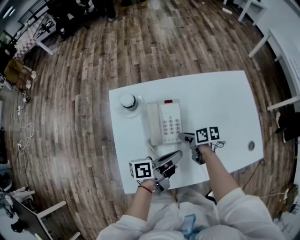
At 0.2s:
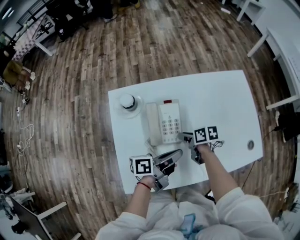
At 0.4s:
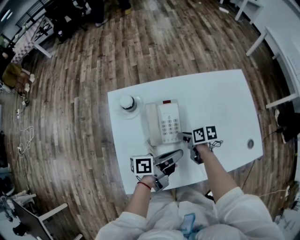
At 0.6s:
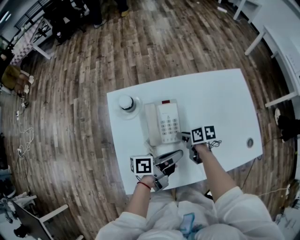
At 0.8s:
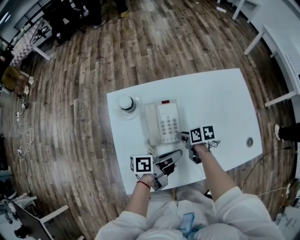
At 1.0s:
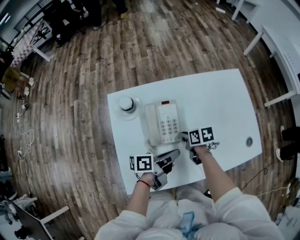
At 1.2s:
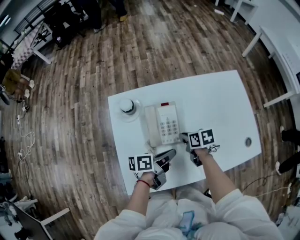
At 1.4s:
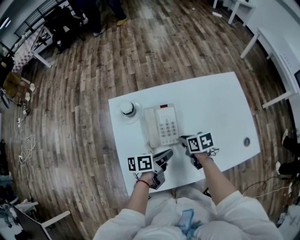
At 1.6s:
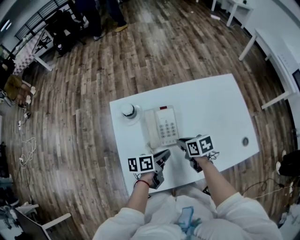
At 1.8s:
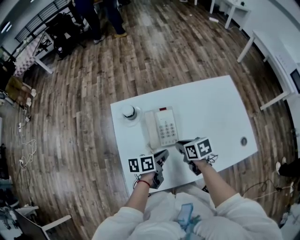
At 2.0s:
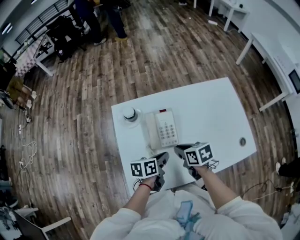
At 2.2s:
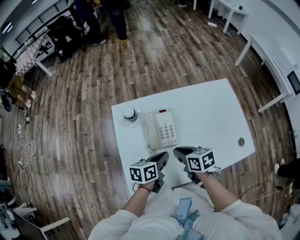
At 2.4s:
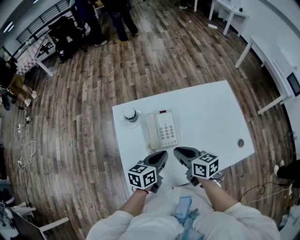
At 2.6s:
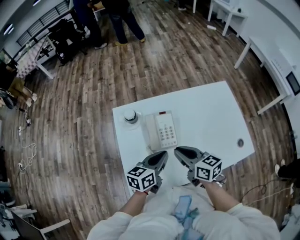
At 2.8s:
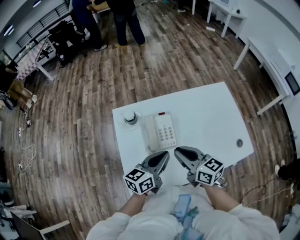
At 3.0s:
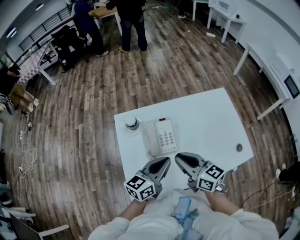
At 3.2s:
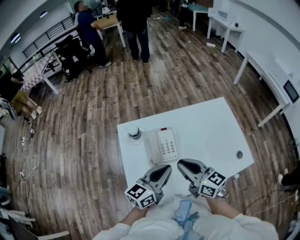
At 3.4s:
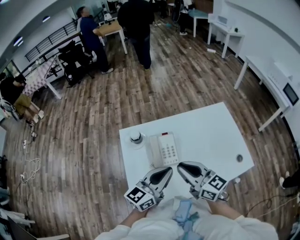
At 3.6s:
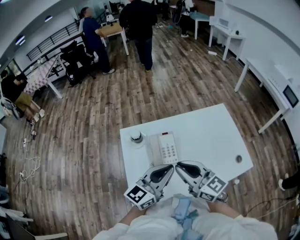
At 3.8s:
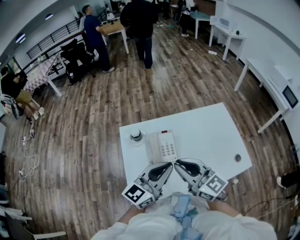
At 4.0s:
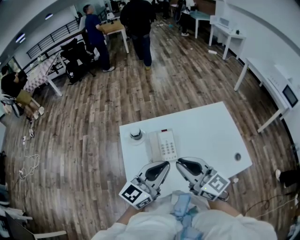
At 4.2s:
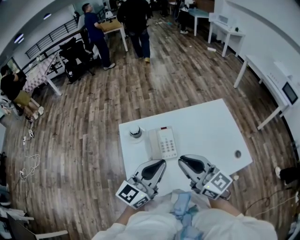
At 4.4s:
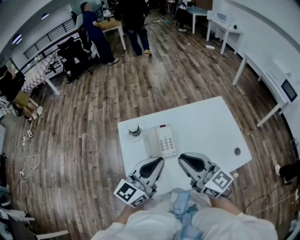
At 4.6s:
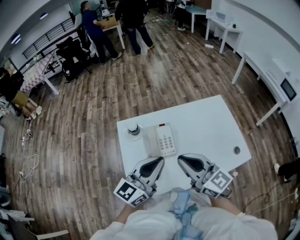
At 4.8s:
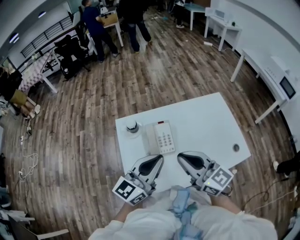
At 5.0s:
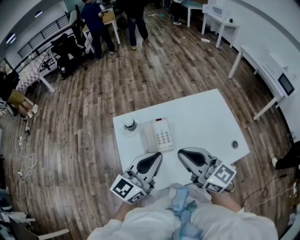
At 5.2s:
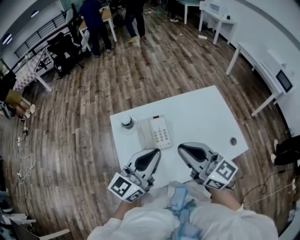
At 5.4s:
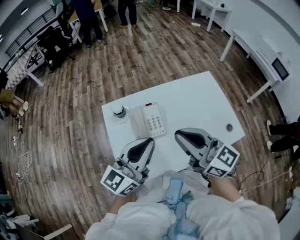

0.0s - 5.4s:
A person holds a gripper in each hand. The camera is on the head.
1.4s - 2.8s: The right gripper goes some 20 cm upward, and tips its fingers upward by approximately 40 degrees.
2.8s - 4.0s: The right gripper is displaced upward by roughly 10 cm, and changes its angle by about 30 degrees.
4.0s - 5.4s: The right gripper moves about 5 cm.

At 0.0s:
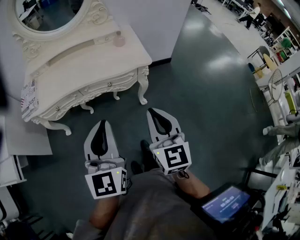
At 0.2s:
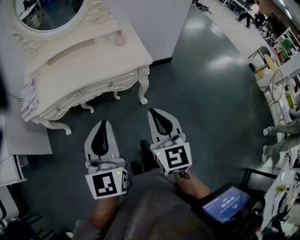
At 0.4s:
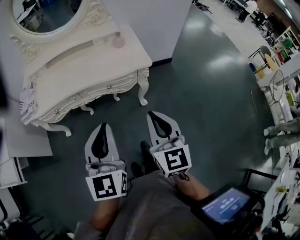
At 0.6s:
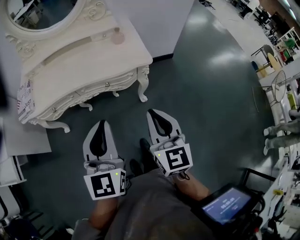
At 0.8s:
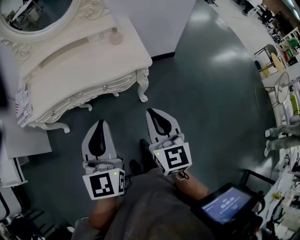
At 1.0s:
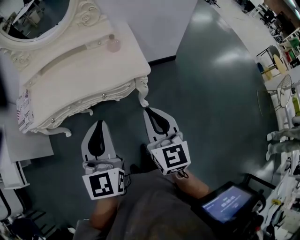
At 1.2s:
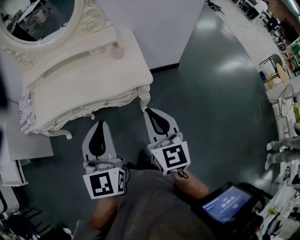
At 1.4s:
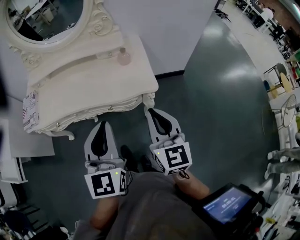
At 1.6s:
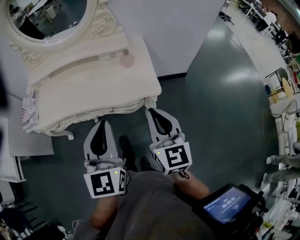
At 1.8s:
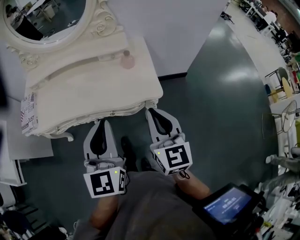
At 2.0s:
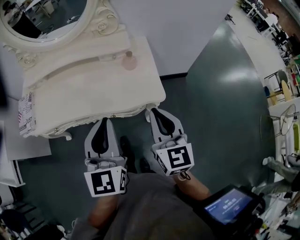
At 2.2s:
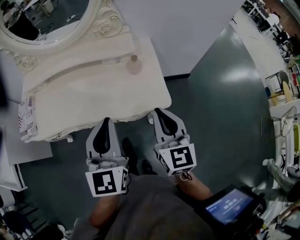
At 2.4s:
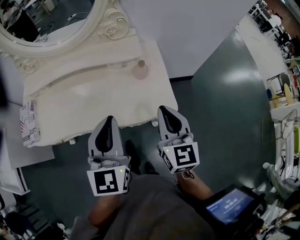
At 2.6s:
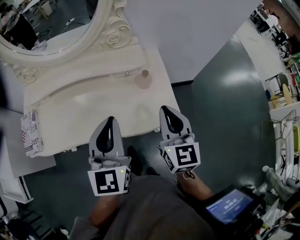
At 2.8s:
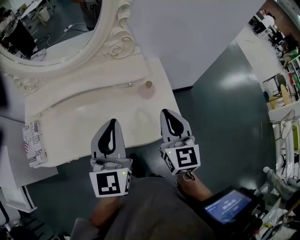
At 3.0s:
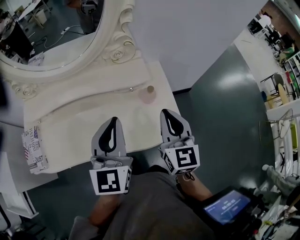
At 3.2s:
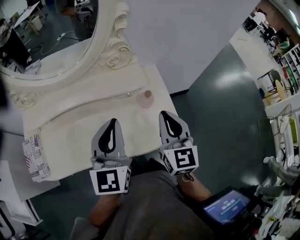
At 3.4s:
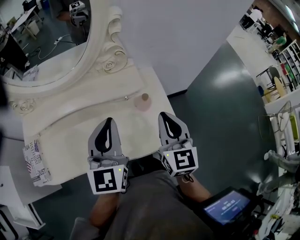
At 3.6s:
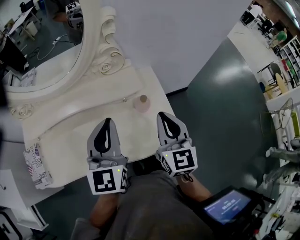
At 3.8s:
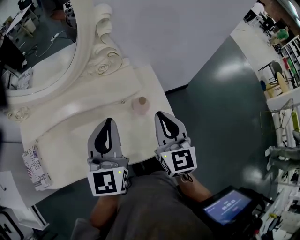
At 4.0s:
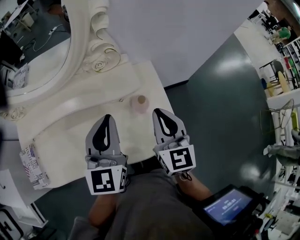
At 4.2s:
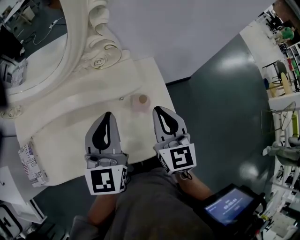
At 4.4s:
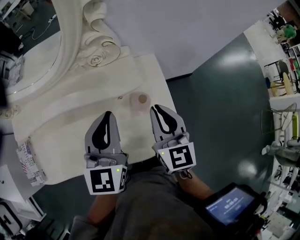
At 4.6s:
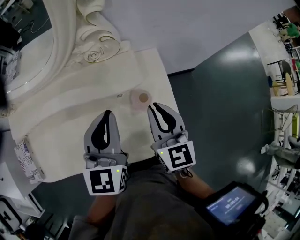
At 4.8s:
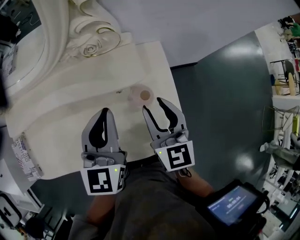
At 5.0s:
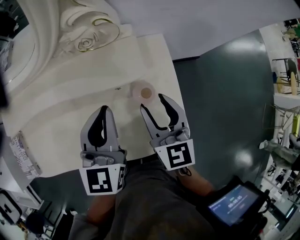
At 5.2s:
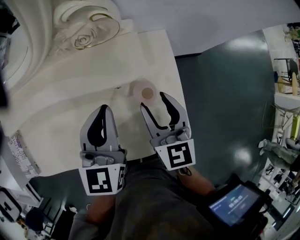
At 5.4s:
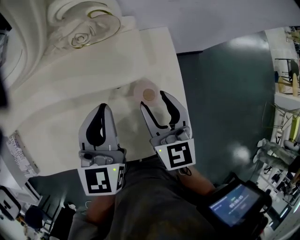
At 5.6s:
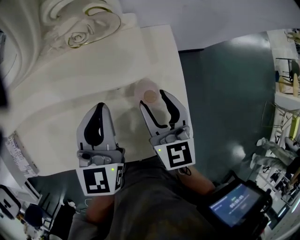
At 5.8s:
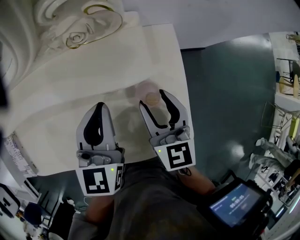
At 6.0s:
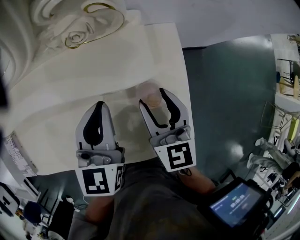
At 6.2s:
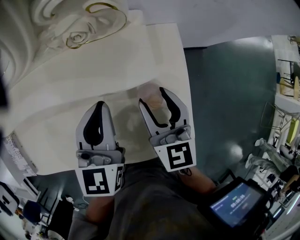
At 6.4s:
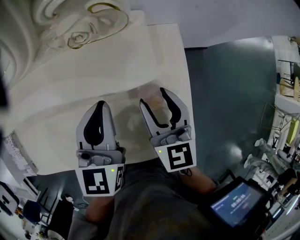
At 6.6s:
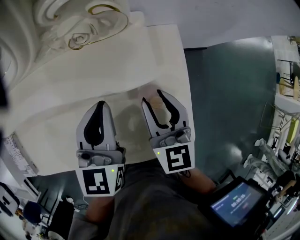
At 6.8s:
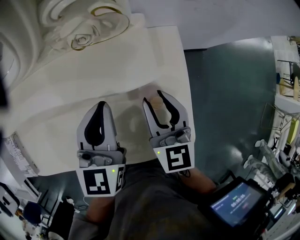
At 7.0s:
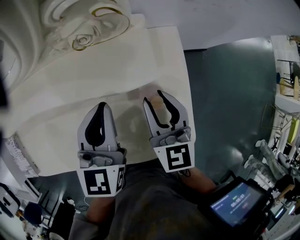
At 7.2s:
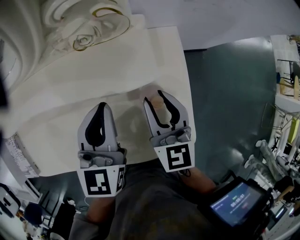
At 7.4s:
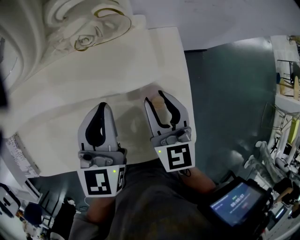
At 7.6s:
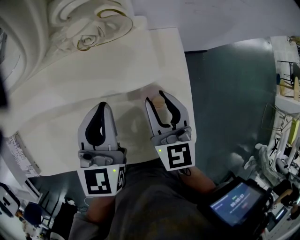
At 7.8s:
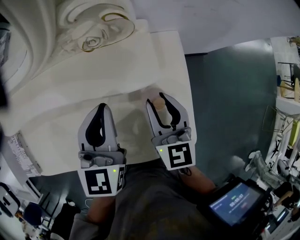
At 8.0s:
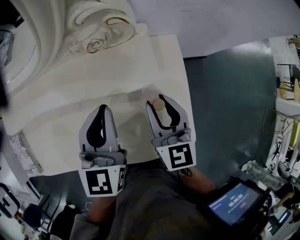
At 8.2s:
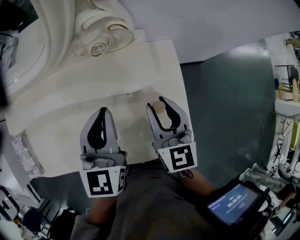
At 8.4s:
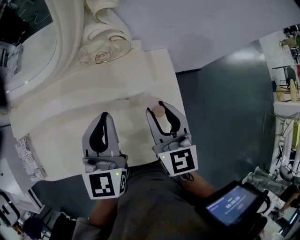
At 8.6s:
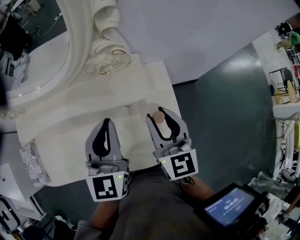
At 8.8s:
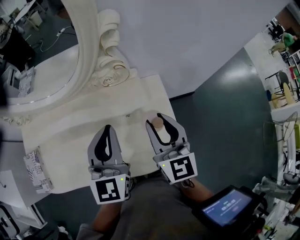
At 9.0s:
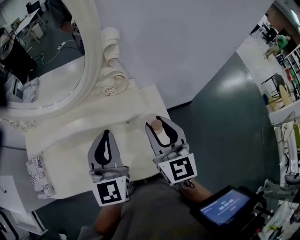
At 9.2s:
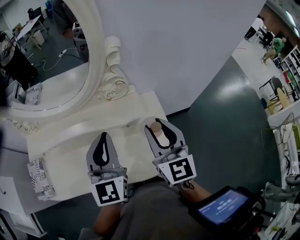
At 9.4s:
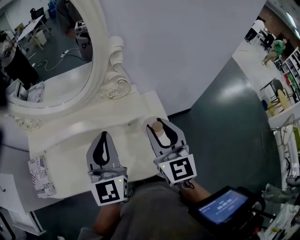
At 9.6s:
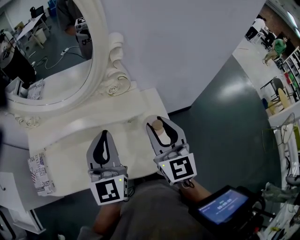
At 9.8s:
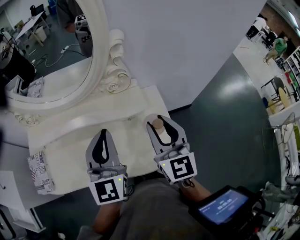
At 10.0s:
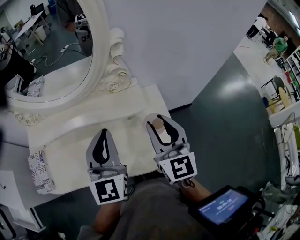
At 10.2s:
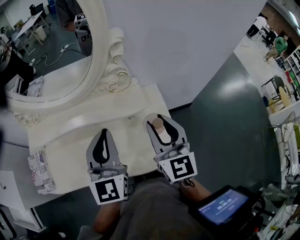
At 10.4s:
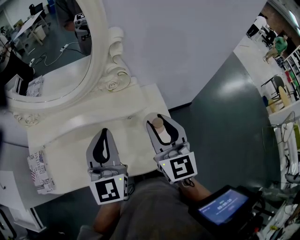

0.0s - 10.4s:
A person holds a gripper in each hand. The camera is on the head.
0.0s - 1.4s: The two grippers go about 20 cm forward.
1.4s - 3.0s: The two grippers go about 25 cm forward.
3.0s - 4.4s: The left gripper travels forward by about 10 cm; the right gripper travels forward and downward by roughly 10 cm.
4.4s - 6.0s: The two grippers go some 15 cm downward and forward. The right gripper opens its fingers.
6.0s - 7.4s: There are only small adjustments of the grippers.
7.4s - 9.0s: Both grippers travel together upward, some 20 cm. The left gripper turns by approximately 20 degrees.
9.0s - 10.4s: The grippers make only small movements.

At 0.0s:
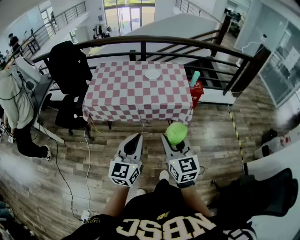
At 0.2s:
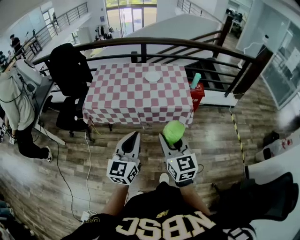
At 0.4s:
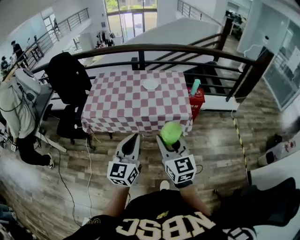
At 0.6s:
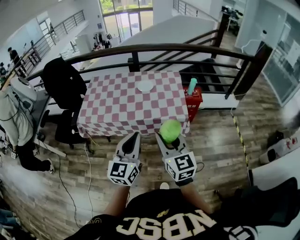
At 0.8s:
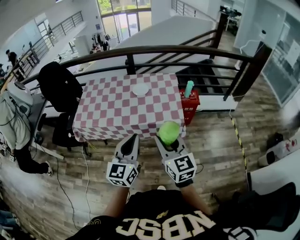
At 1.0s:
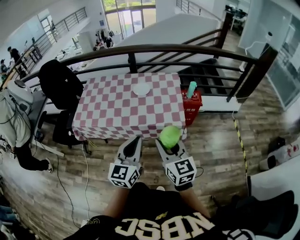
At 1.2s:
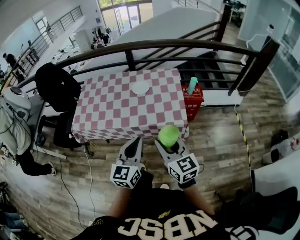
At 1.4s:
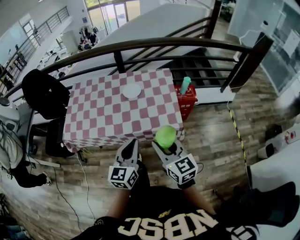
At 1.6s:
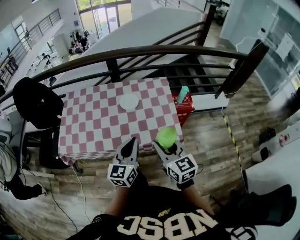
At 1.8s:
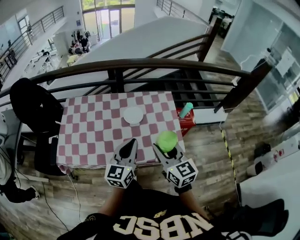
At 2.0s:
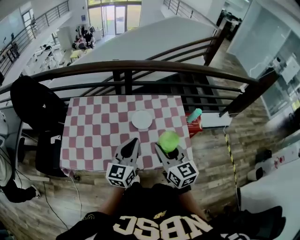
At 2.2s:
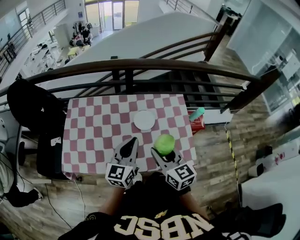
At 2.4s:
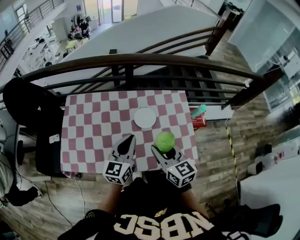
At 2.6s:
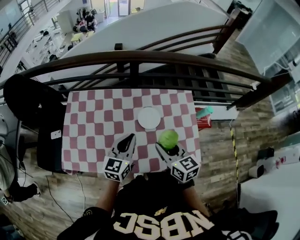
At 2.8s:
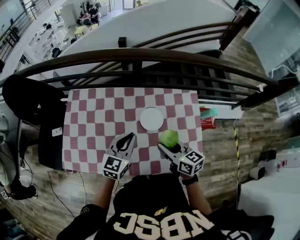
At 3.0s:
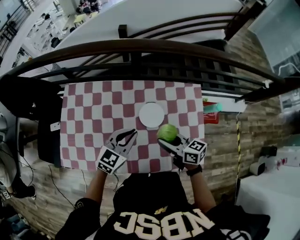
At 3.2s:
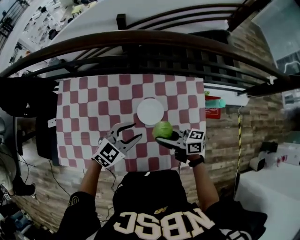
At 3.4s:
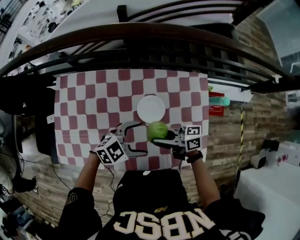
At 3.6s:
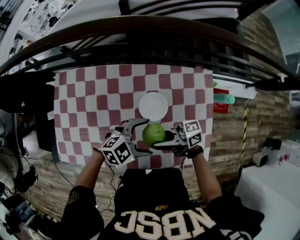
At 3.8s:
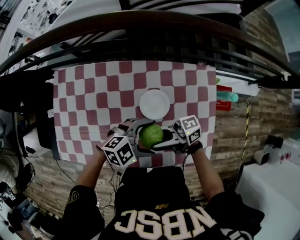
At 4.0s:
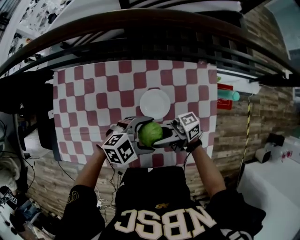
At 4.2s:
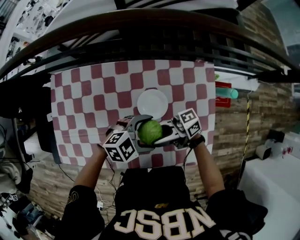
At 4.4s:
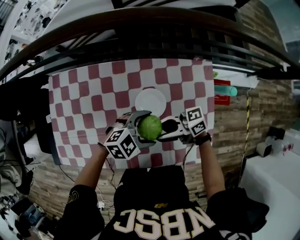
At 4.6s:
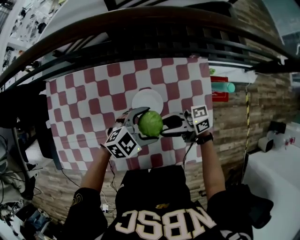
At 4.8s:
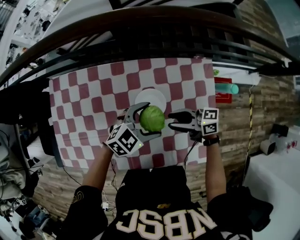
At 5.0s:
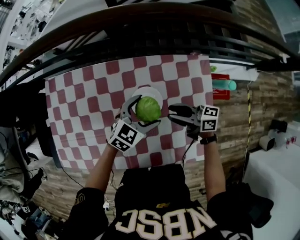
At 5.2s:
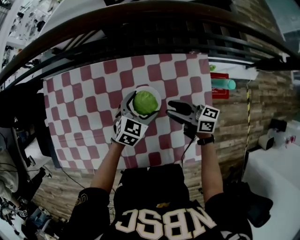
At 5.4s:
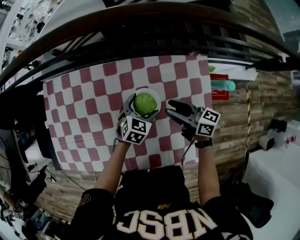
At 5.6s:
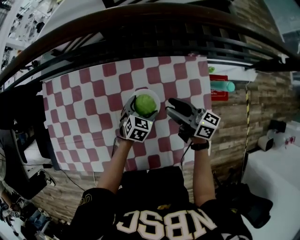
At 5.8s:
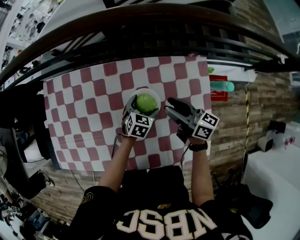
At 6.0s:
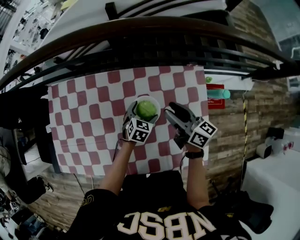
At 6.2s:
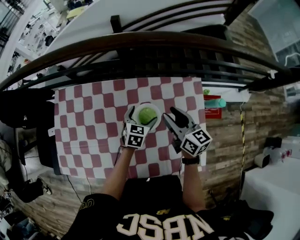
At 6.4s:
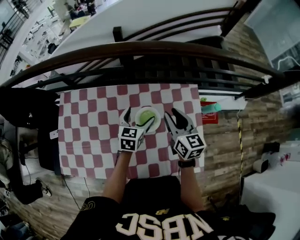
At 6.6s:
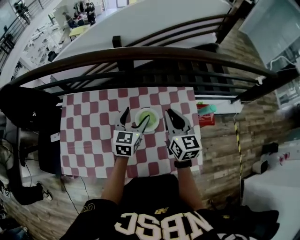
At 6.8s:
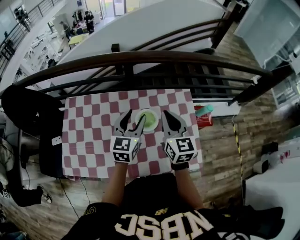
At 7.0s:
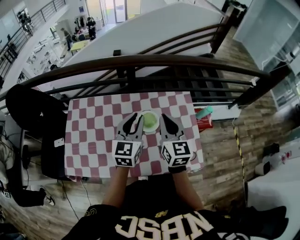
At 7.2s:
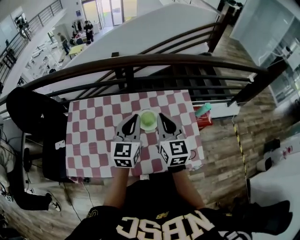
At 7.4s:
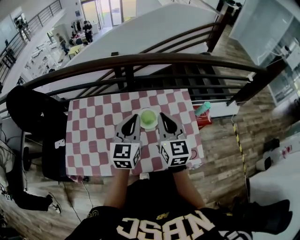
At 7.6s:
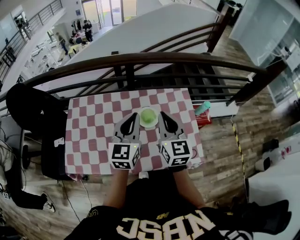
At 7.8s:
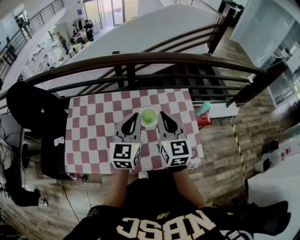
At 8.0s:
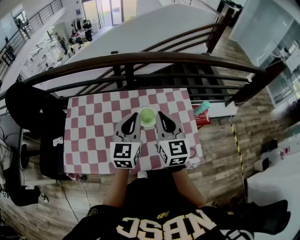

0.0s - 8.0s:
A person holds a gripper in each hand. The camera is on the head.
0.0s - 1.6s: The grippers both shift forward by about 30 cm.
1.6s - 3.2s: The left gripper changes place by roughly 35 cm, and turns by roughly 40 degrees. Meanwhile the right gripper shifts by some 35 cm, and changes its angle by roughly 60 degrees.
3.2s - 4.8s: The left gripper shifts by roughly 10 cm, and opens; the right gripper changes place by about 10 cm.
4.8s - 6.4s: The right gripper moves upward, approximately 10 cm, and swivels about 60 degrees, while the left gripper travels downward and back again, some 15 cm each way, and changes its angle by about 50 degrees.
6.4s - 8.0s: The left gripper goes approximately 25 cm upward and backward, changes its angle by roughly 30 degrees, and closes its fingers. The right gripper shifts roughly 20 cm backward, upward and to the left, rotates some 20 degrees, and closes.
